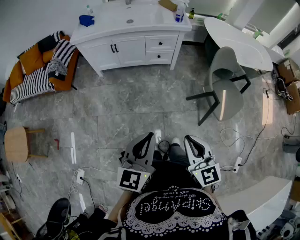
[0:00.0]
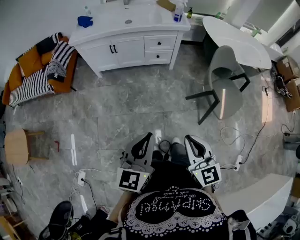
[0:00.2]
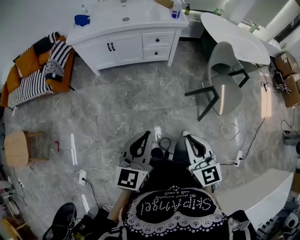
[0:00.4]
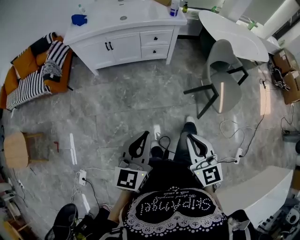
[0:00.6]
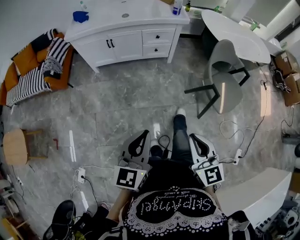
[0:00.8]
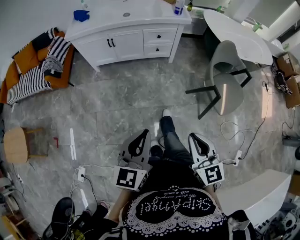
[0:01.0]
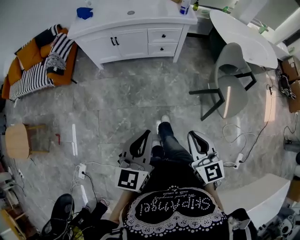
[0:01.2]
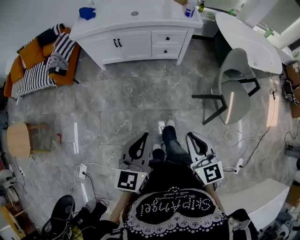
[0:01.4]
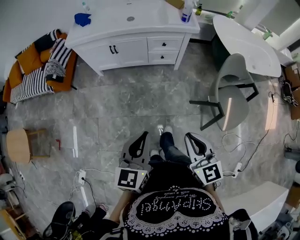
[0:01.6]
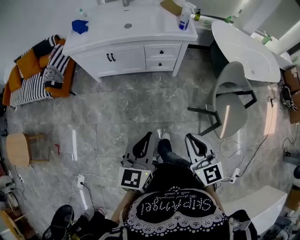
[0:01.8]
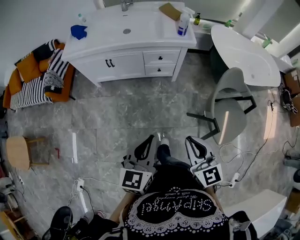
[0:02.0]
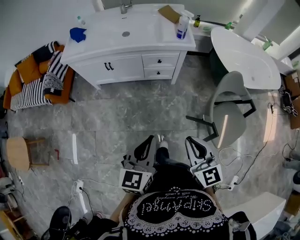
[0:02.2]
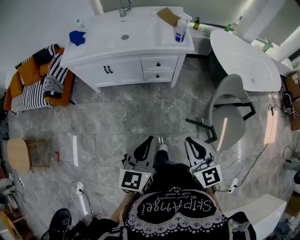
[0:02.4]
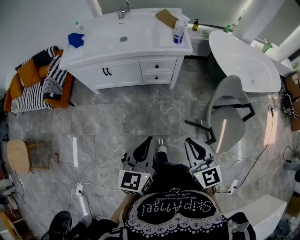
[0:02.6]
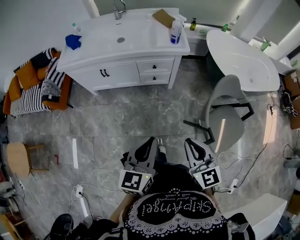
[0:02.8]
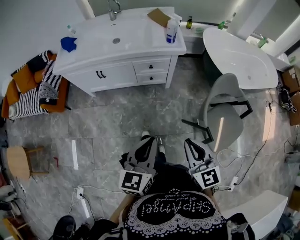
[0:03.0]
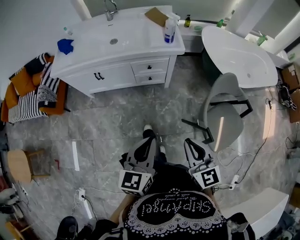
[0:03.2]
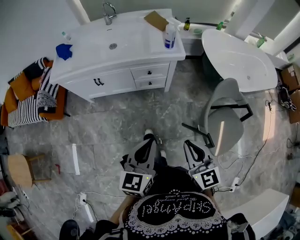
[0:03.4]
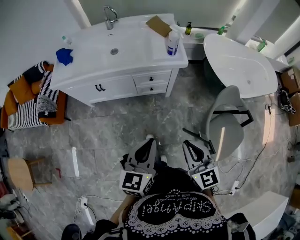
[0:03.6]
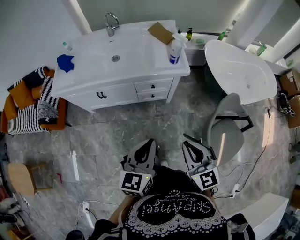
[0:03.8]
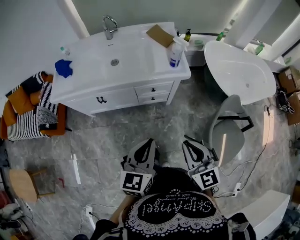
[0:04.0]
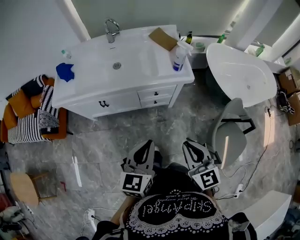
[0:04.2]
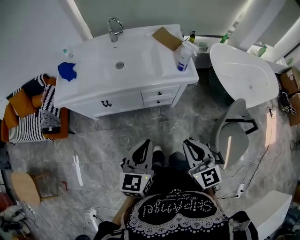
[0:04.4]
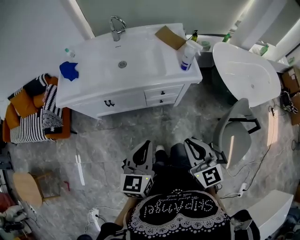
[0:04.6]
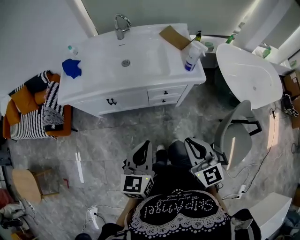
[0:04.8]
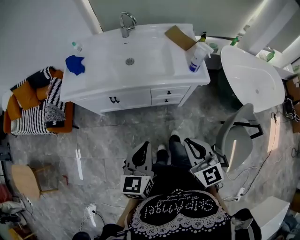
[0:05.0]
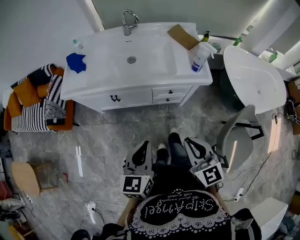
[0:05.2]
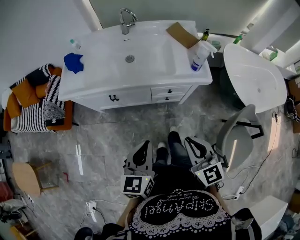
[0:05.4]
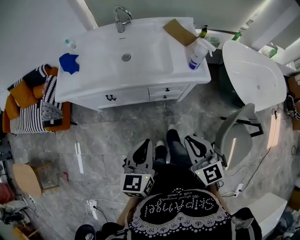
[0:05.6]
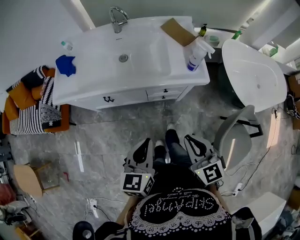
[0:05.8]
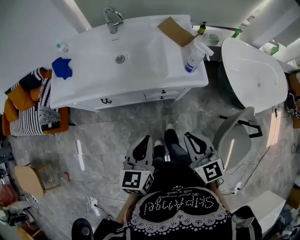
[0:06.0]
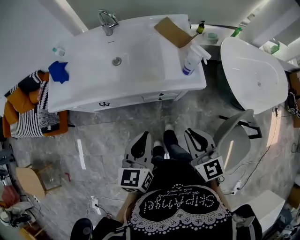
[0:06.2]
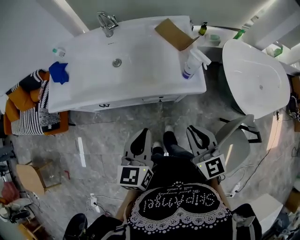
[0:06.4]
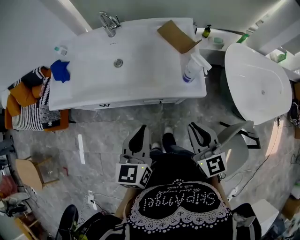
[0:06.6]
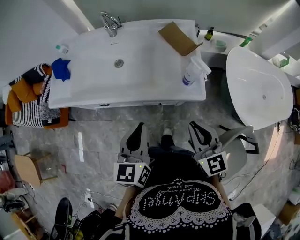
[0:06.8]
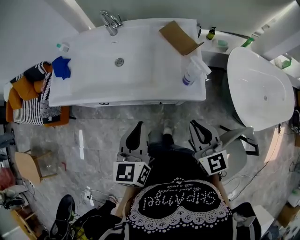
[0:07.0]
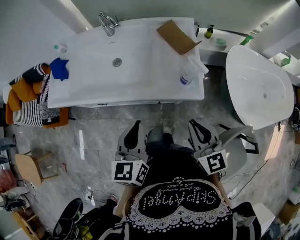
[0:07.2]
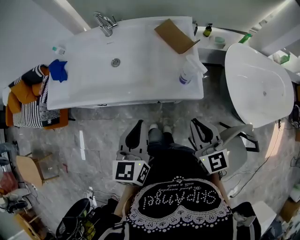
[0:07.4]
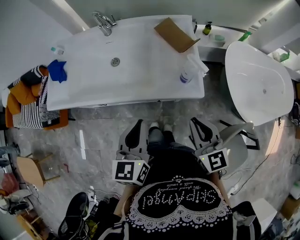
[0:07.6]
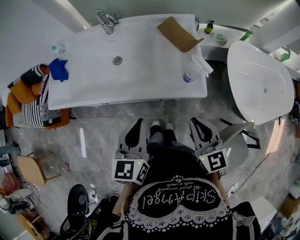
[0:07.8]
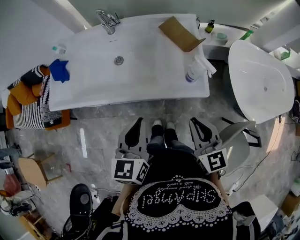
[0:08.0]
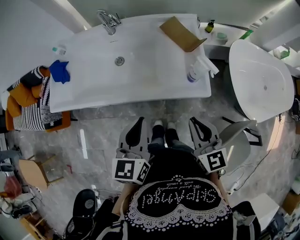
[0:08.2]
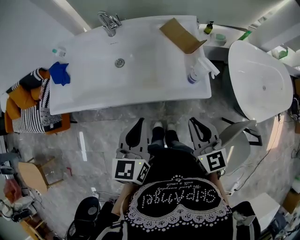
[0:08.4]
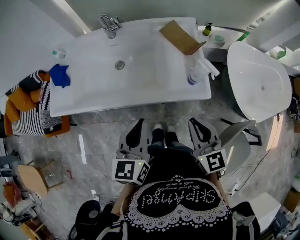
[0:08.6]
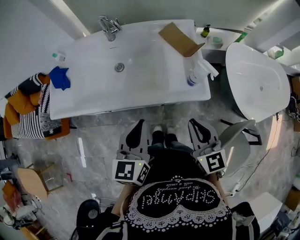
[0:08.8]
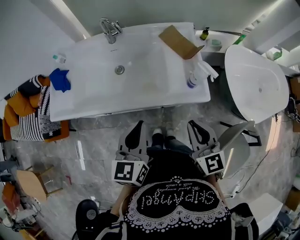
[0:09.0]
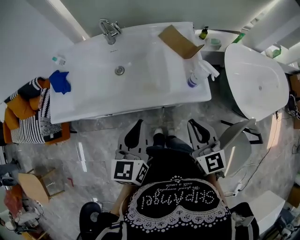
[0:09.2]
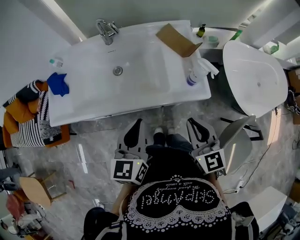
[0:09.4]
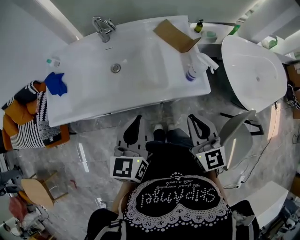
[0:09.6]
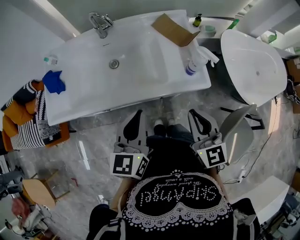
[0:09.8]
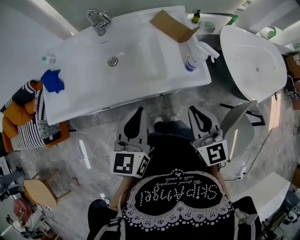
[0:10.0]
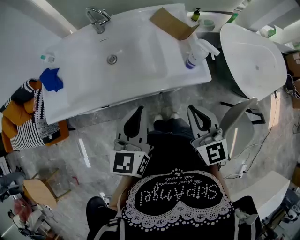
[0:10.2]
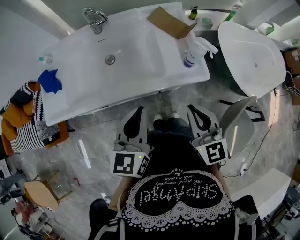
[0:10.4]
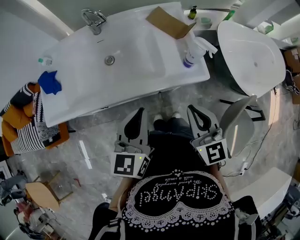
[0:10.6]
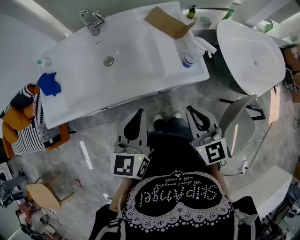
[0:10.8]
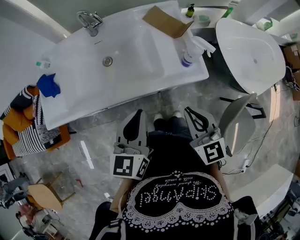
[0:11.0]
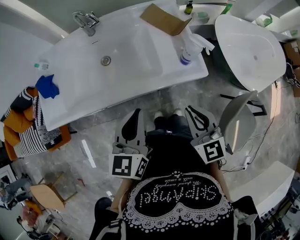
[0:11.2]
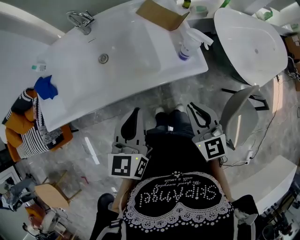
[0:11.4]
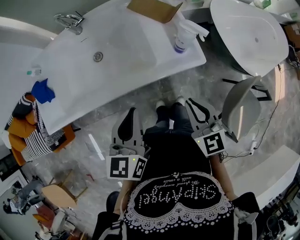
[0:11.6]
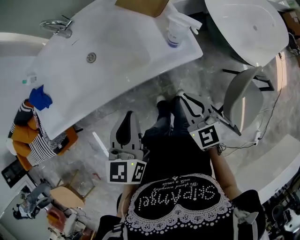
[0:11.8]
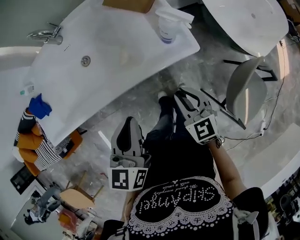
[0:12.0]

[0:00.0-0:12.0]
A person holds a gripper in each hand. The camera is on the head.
0:00.0 to 0:01.6: The two grippers go some 10 cm forward.
0:01.6 to 0:03.0: Both grippers travel together forward and to the right, approximately 15 cm.
0:03.0 to 0:04.4: The two grippers go approximately 20 cm forward and to the left.
0:04.4 to 0:06.0: Both grippers travel together forward, some 10 cm.
0:06.0 to 0:07.6: The two grippers go approximately 15 cm forward and to the right.
0:07.6 to 0:09.0: The two grippers go roughly 5 cm to the left.
0:09.0 to 0:10.4: The grippers make only small movements.
0:10.4 to 0:12.0: The right gripper heads downward, covering about 15 cm. The left gripper changes place by about 5 cm.

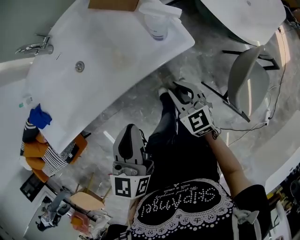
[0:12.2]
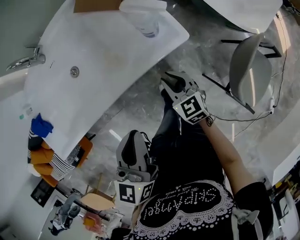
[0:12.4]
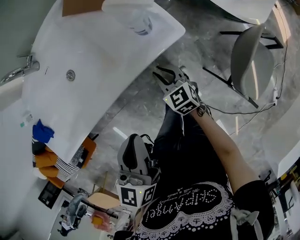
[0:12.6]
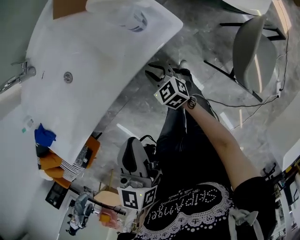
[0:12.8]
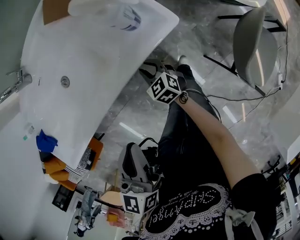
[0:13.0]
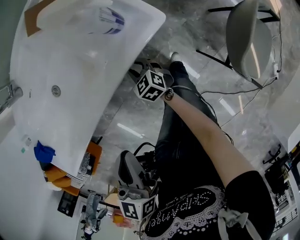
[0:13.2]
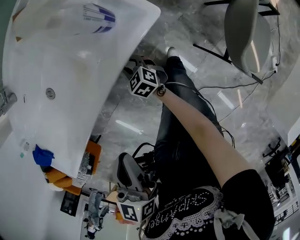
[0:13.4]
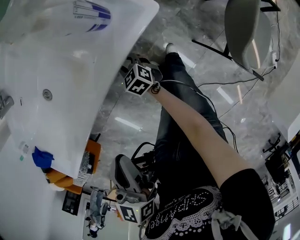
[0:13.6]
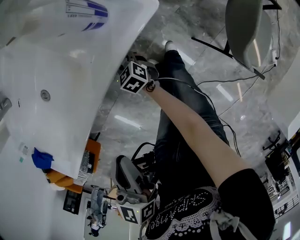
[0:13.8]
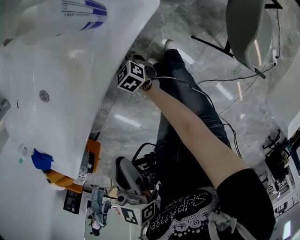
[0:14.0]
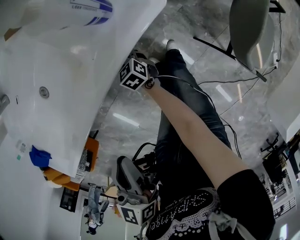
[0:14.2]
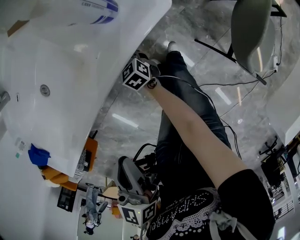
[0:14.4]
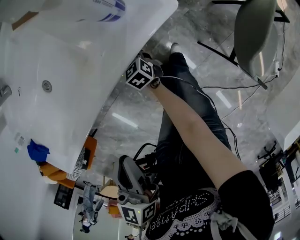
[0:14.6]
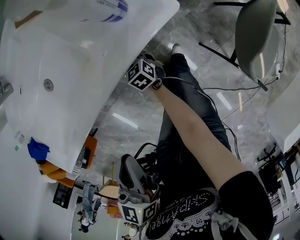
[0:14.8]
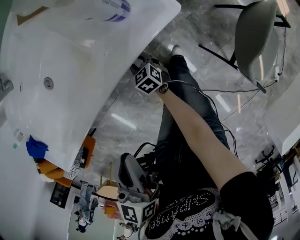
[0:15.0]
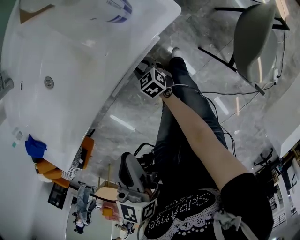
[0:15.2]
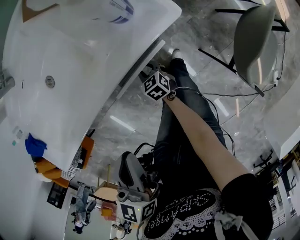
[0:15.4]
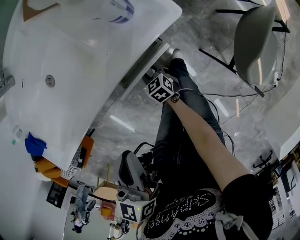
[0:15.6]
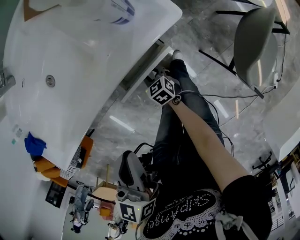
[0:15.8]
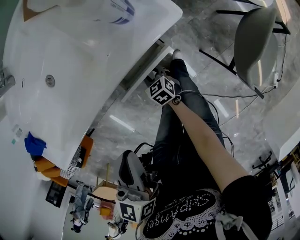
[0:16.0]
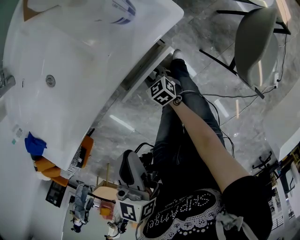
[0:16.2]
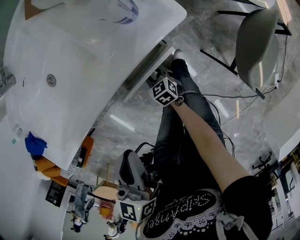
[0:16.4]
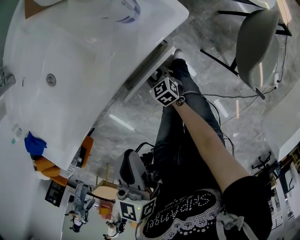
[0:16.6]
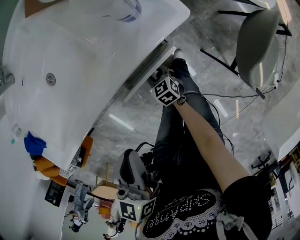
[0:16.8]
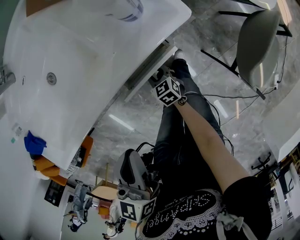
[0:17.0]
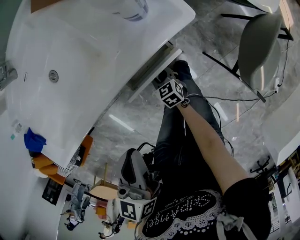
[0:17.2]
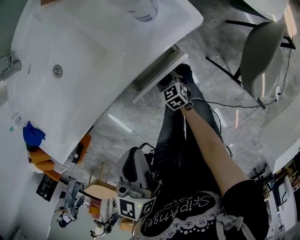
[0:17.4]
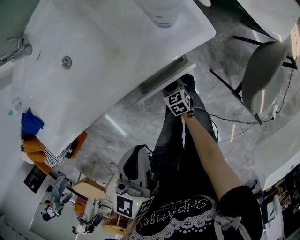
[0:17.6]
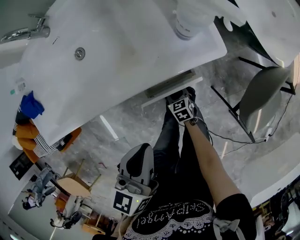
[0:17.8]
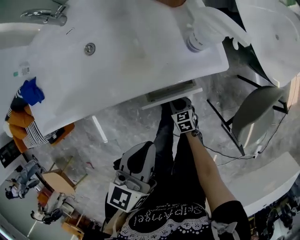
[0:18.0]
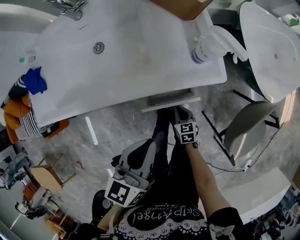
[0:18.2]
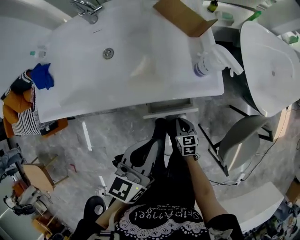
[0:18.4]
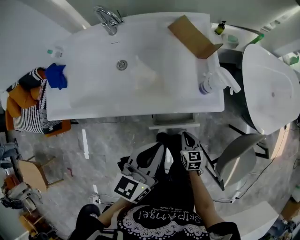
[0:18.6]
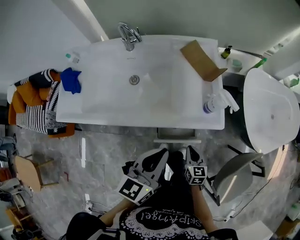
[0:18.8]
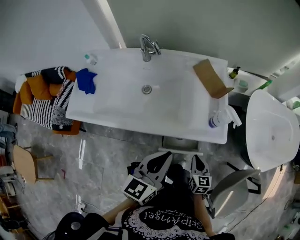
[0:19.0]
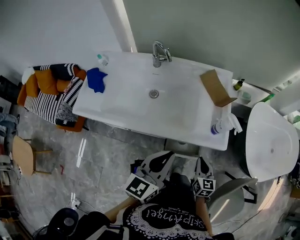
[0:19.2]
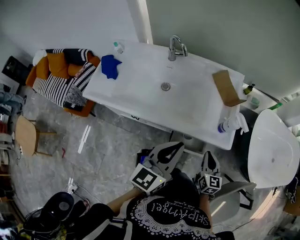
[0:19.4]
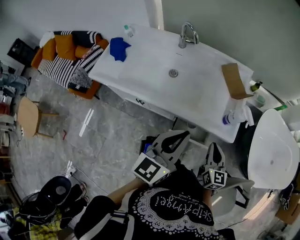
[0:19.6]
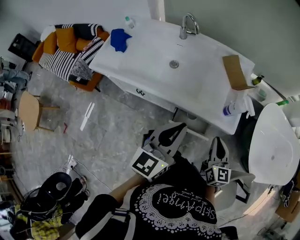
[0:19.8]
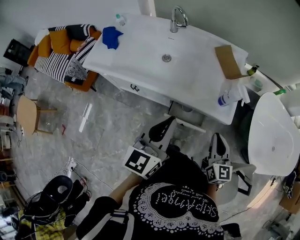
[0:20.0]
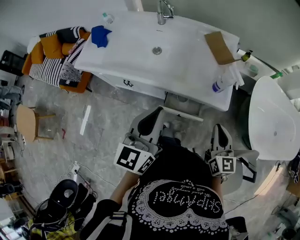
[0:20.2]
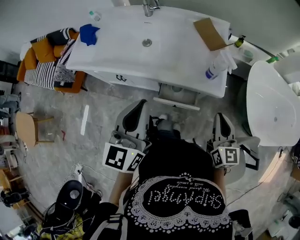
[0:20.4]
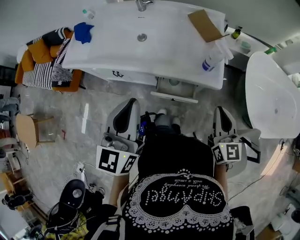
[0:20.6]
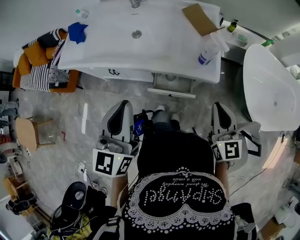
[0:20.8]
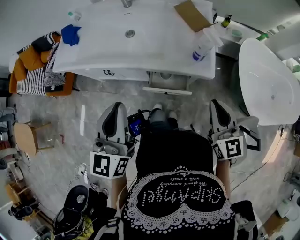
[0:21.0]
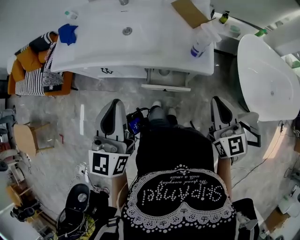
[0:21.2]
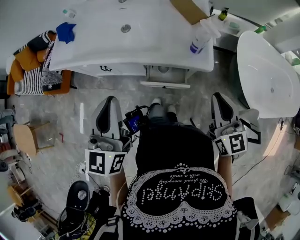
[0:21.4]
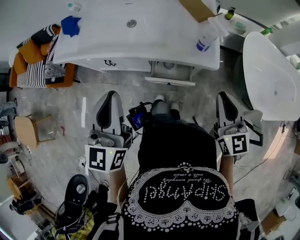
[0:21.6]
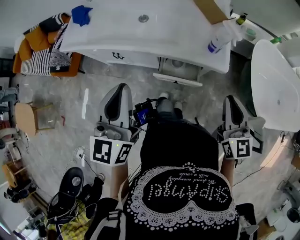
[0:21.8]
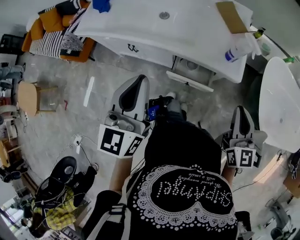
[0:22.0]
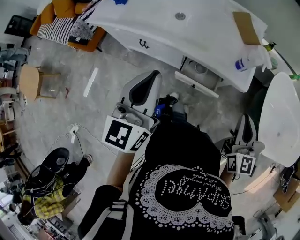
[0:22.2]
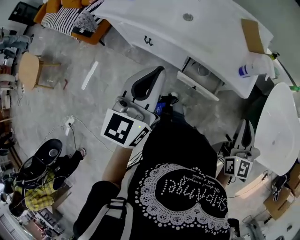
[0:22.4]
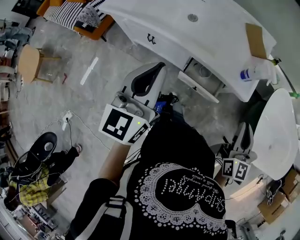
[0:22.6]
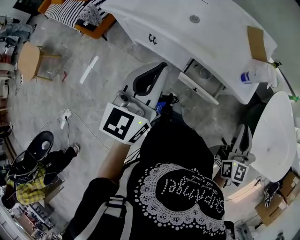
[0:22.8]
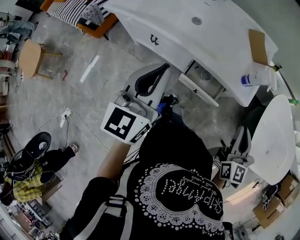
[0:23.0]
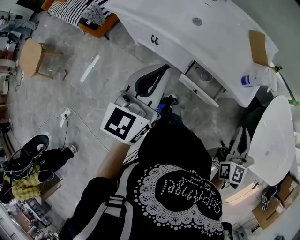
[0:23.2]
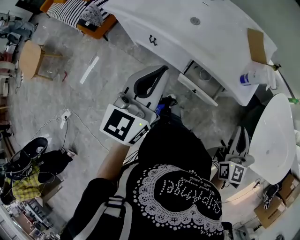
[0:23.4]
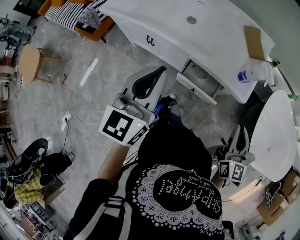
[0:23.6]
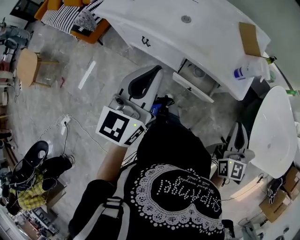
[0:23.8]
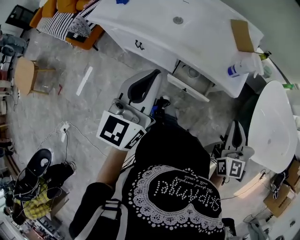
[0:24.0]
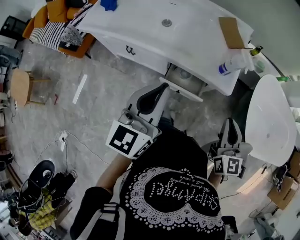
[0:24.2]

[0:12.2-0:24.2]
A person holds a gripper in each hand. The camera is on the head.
0:12.2 to 0:13.8: The left gripper moves downward, roughly 5 cm; the right gripper moves downward, some 30 cm, and changes its angle by approximately 20 degrees.
0:13.8 to 0:15.2: The right gripper moves backward, roughly 5 cm.
0:15.2 to 0:16.6: The grippers make only small movements.
0:16.6 to 0:18.2: The right gripper shifts roughly 10 cm upward and to the right, and closes up.
0:18.2 to 0:19.8: The right gripper moves upward, roughly 35 cm, and tilts its fingers about 40 degrees upward, while the left gripper goes roughly 10 cm upward, and swivels about 30 degrees.
0:19.8 to 0:21.2: The left gripper moves backward and to the left, about 10 cm, while the right gripper moves backward, upward and to the right, about 10 cm.
0:21.2 to 0:22.6: The grippers move only a little.
0:22.6 to 0:24.2: The left gripper heads to the right, covering about 10 cm.
